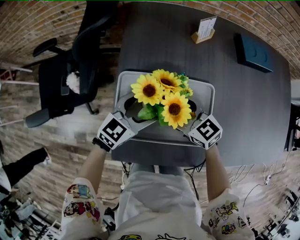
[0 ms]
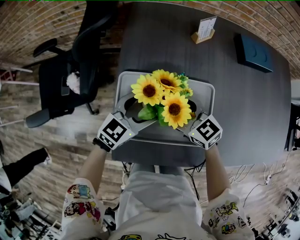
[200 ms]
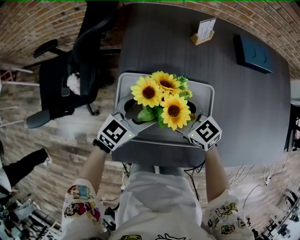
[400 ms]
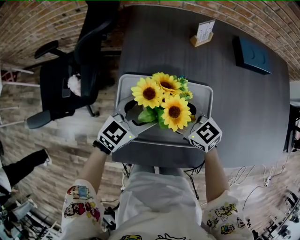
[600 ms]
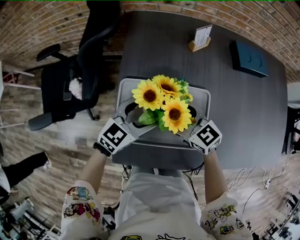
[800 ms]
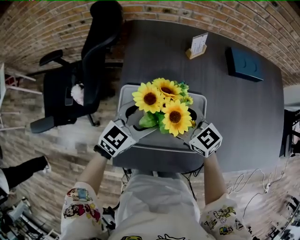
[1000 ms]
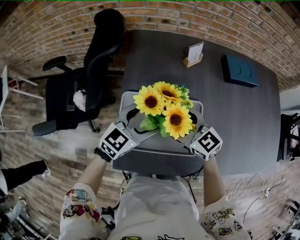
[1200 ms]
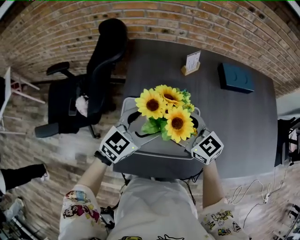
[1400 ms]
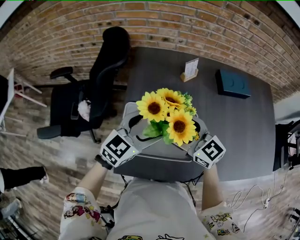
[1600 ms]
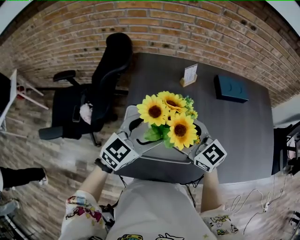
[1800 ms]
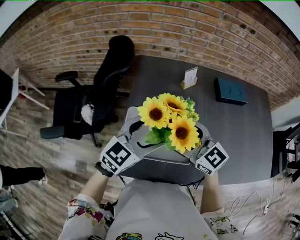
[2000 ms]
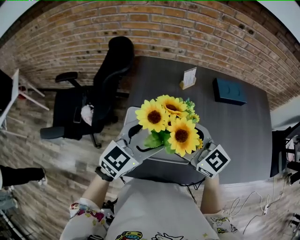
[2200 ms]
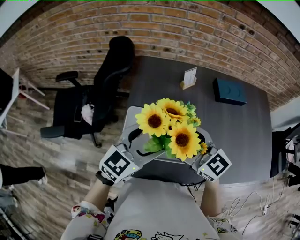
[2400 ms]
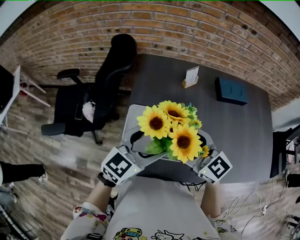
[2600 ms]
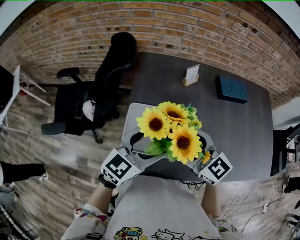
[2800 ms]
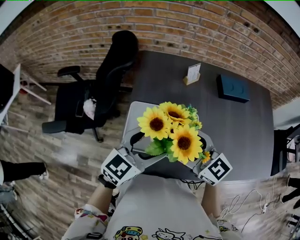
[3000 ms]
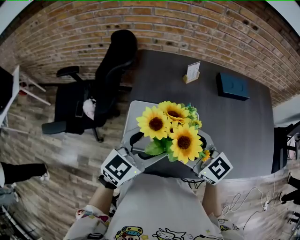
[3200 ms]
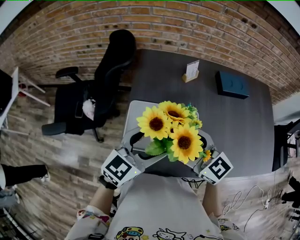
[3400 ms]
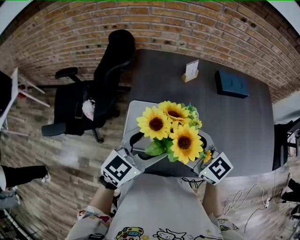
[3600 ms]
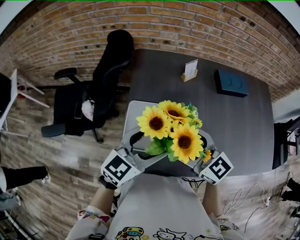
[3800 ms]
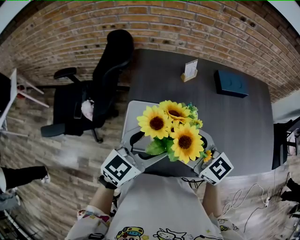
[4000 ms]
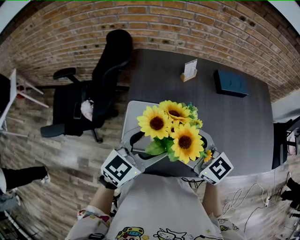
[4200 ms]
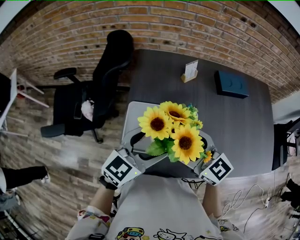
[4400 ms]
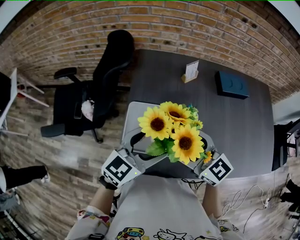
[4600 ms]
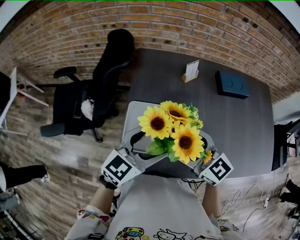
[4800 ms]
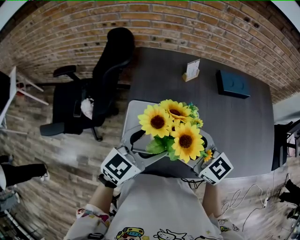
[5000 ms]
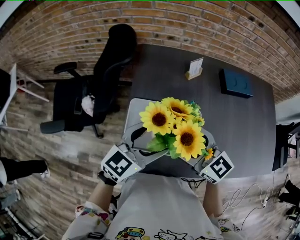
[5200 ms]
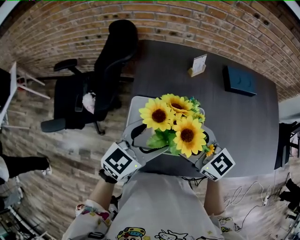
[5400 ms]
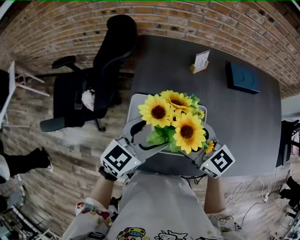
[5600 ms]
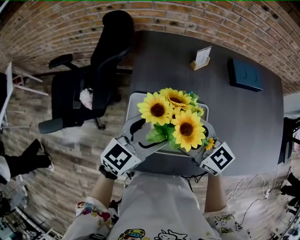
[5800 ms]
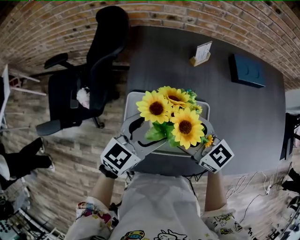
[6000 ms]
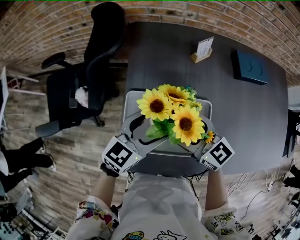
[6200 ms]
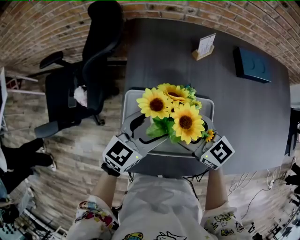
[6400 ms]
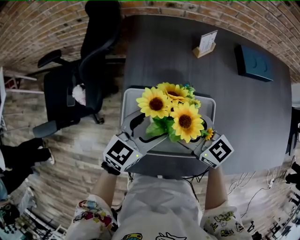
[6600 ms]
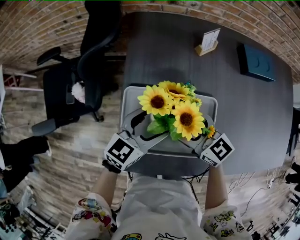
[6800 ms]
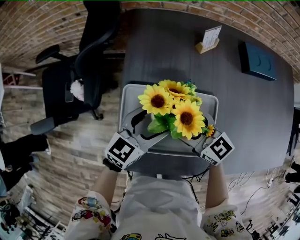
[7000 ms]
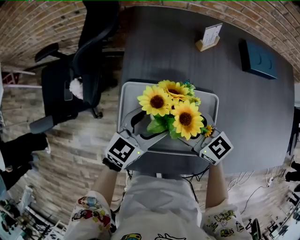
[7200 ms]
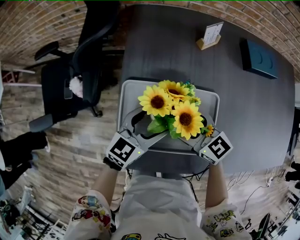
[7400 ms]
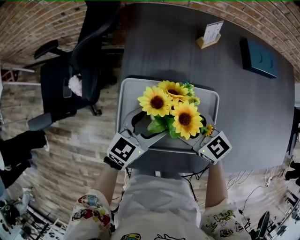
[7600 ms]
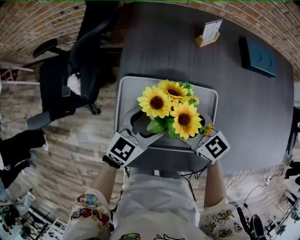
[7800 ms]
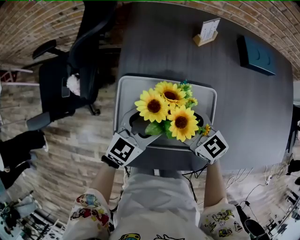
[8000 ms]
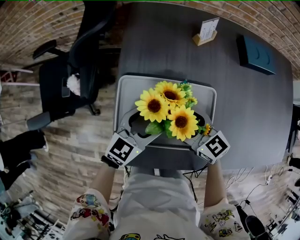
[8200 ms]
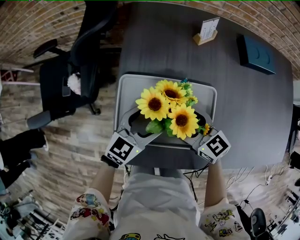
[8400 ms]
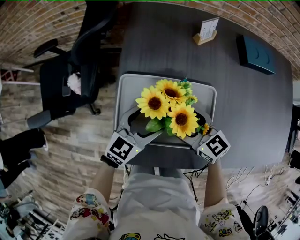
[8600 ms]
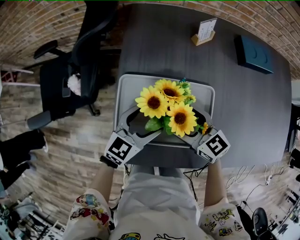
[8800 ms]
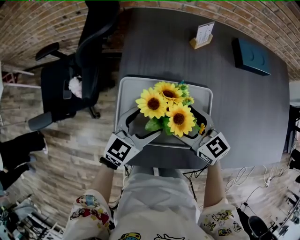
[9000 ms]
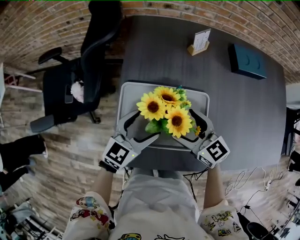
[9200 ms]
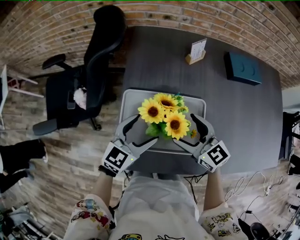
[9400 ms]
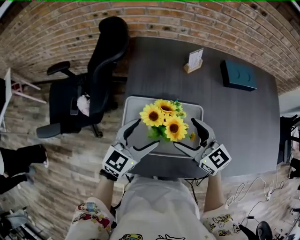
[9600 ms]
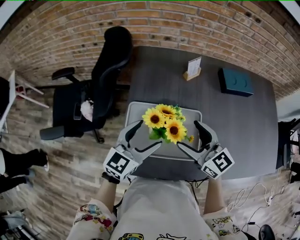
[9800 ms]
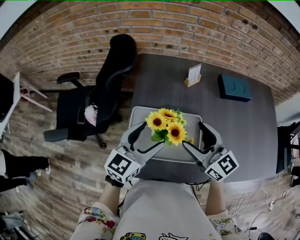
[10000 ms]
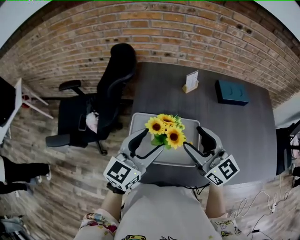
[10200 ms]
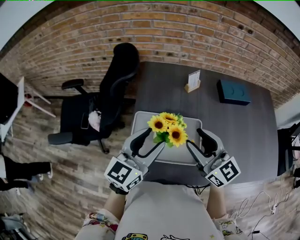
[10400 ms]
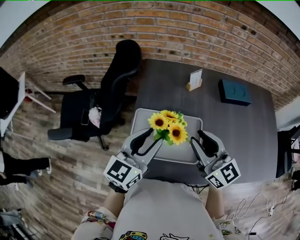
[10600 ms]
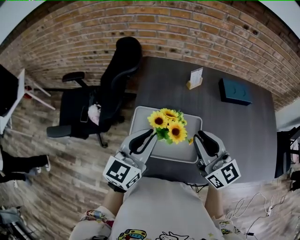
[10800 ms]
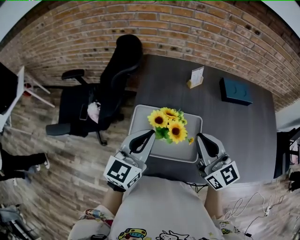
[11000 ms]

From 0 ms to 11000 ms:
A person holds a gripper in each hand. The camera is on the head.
From 0 ms to 1600 ms: The grippers both shift upward by some 15 cm.
From 1600 ms to 3200 ms: Both grippers travel together backward and upward, roughly 10 cm.
From 3200 ms to 4800 ms: Neither gripper changes place.
From 4800 ms to 6200 ms: Both grippers move downward and forward, some 10 cm.
From 6200 ms to 7800 ms: Both grippers move downward, roughly 10 cm.
From 7800 ms to 9400 ms: The left gripper shifts by some 5 cm; the right gripper goes approximately 5 cm upward.
From 9400 ms to 11000 ms: The two grippers go some 15 cm upward. The right gripper turns by approximately 20 degrees, and closes its fingers. The left gripper closes.

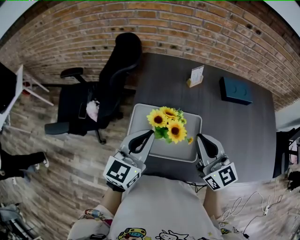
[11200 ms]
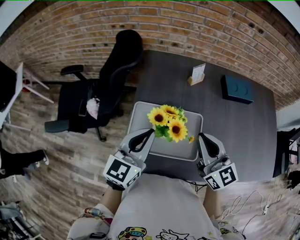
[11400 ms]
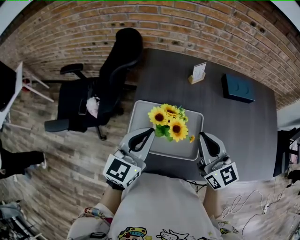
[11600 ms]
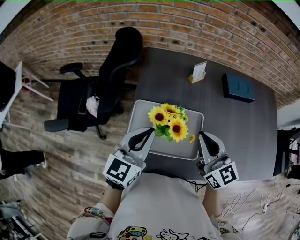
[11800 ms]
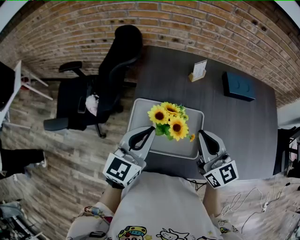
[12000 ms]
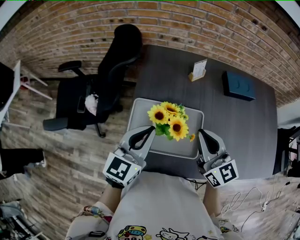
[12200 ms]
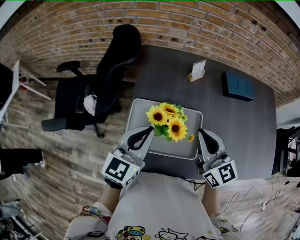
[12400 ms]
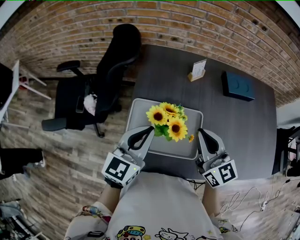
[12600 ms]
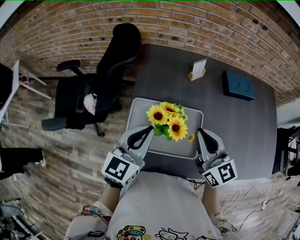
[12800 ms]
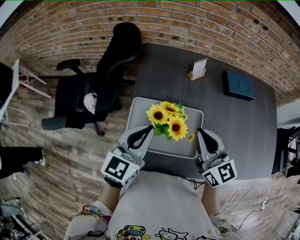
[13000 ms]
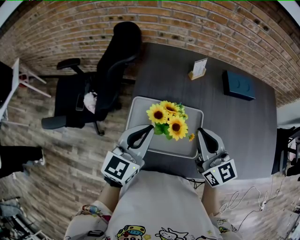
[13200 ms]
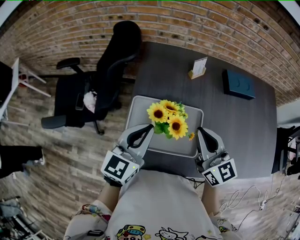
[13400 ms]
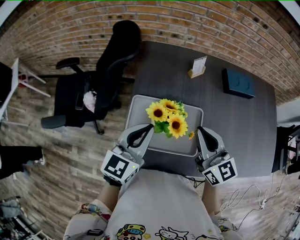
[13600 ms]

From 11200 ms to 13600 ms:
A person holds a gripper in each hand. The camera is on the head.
From 11200 ms to 12400 ms: The grippers make only small movements.
From 12400 ms to 13600 ms: Both grippers stay put.

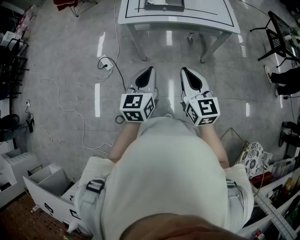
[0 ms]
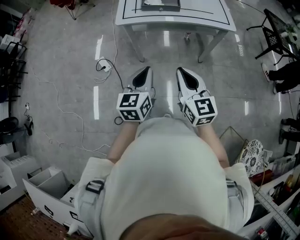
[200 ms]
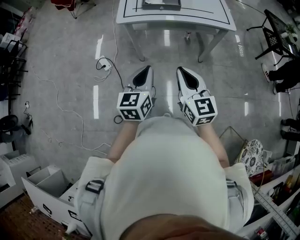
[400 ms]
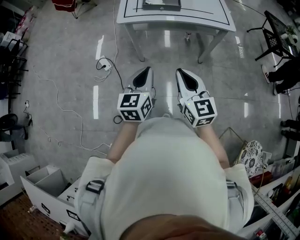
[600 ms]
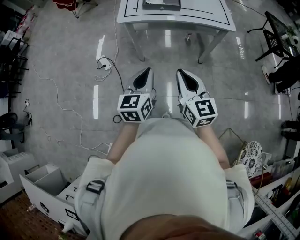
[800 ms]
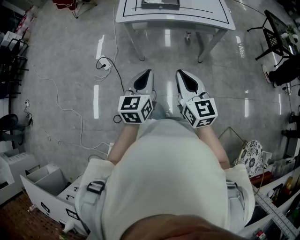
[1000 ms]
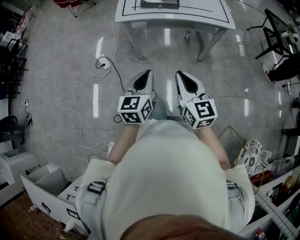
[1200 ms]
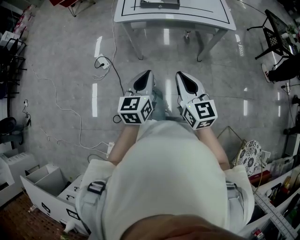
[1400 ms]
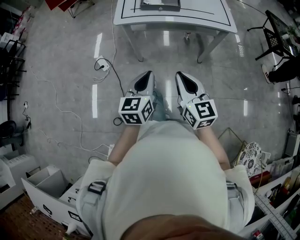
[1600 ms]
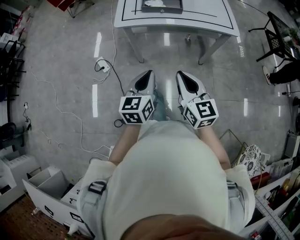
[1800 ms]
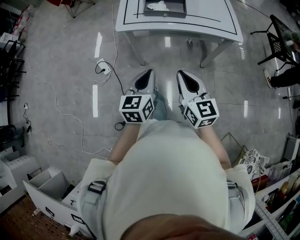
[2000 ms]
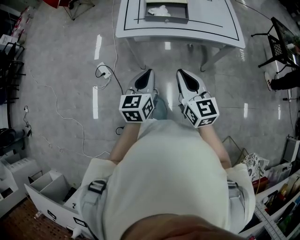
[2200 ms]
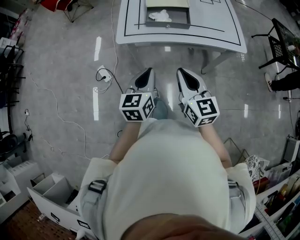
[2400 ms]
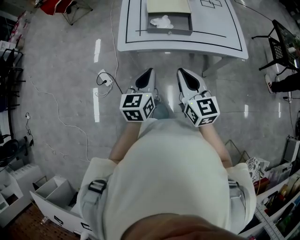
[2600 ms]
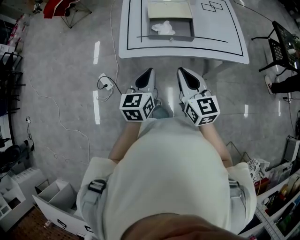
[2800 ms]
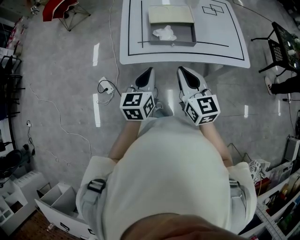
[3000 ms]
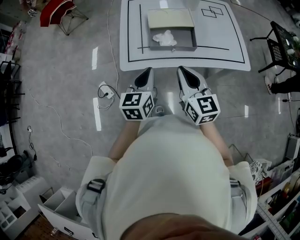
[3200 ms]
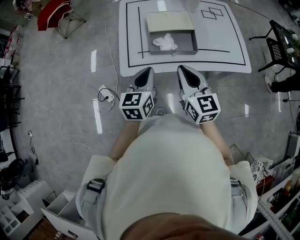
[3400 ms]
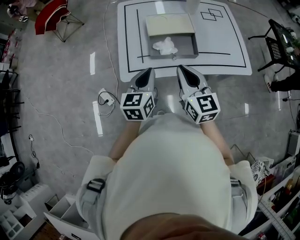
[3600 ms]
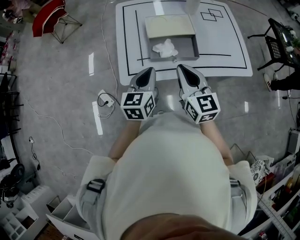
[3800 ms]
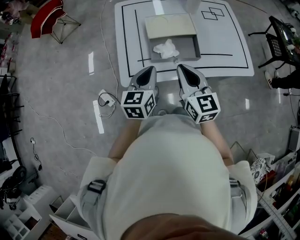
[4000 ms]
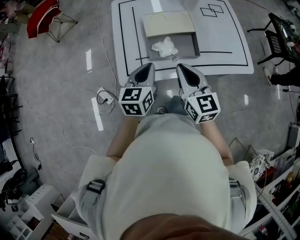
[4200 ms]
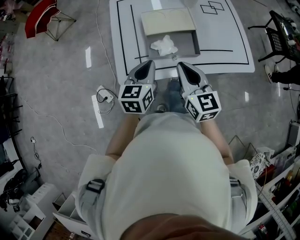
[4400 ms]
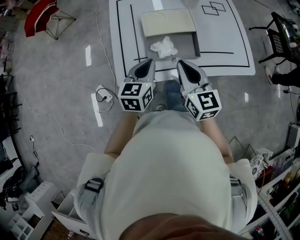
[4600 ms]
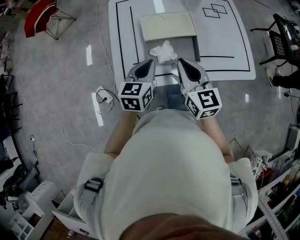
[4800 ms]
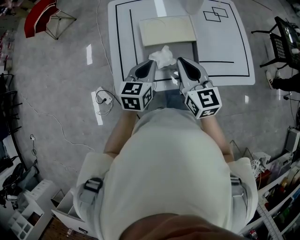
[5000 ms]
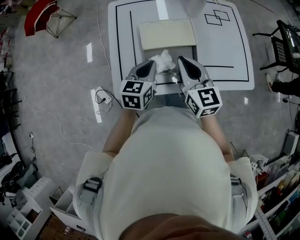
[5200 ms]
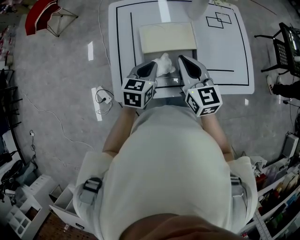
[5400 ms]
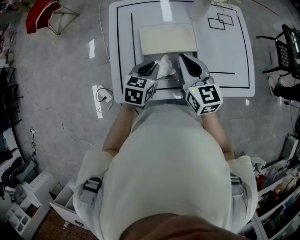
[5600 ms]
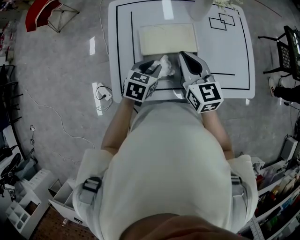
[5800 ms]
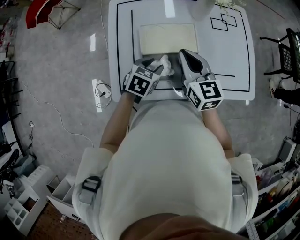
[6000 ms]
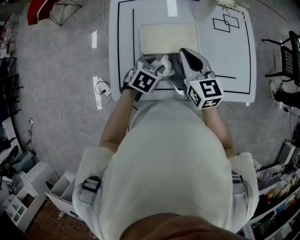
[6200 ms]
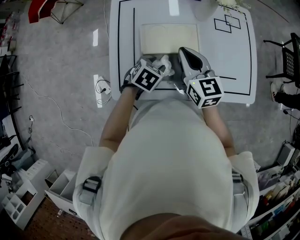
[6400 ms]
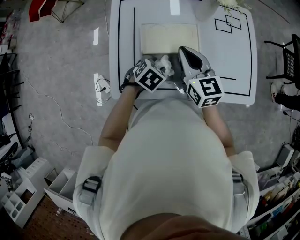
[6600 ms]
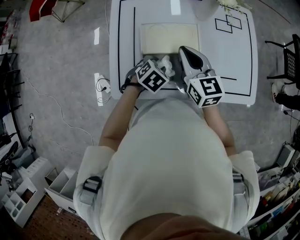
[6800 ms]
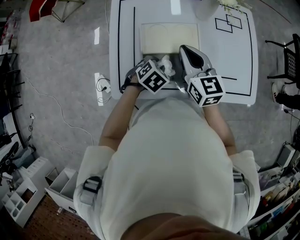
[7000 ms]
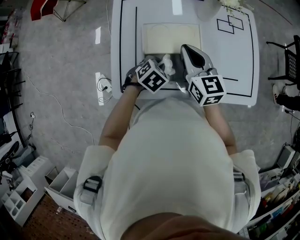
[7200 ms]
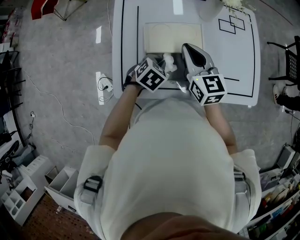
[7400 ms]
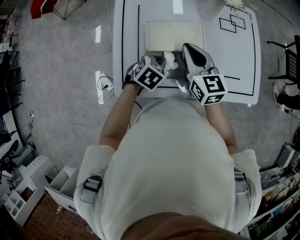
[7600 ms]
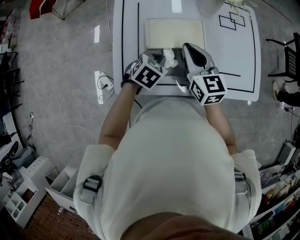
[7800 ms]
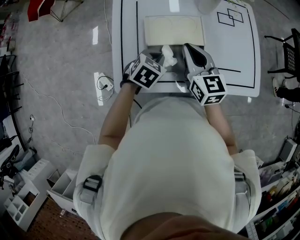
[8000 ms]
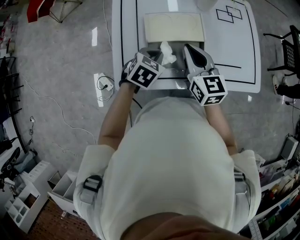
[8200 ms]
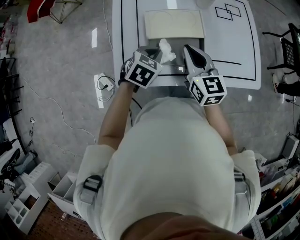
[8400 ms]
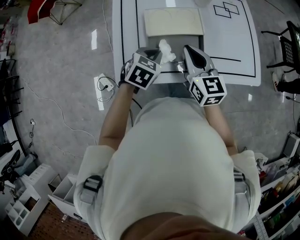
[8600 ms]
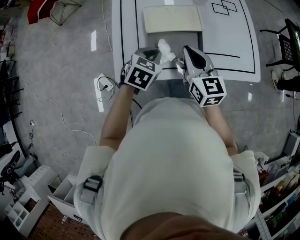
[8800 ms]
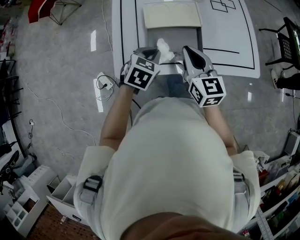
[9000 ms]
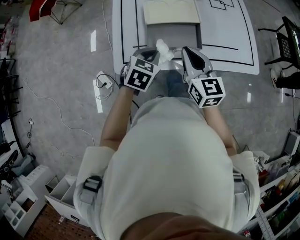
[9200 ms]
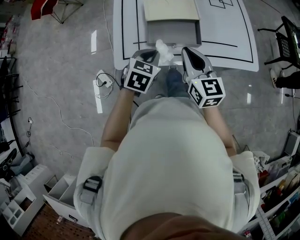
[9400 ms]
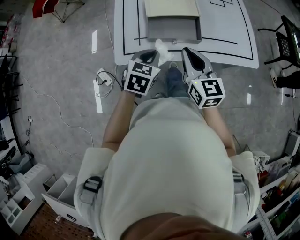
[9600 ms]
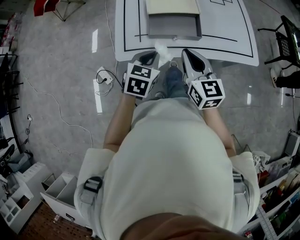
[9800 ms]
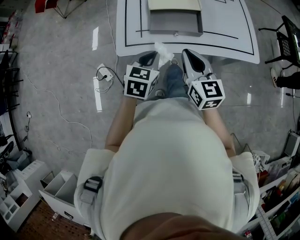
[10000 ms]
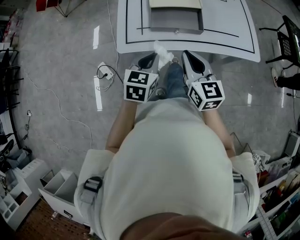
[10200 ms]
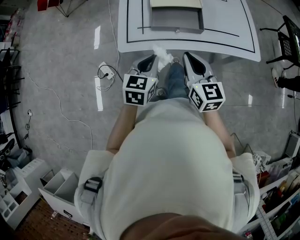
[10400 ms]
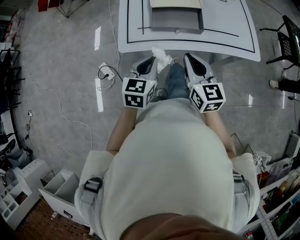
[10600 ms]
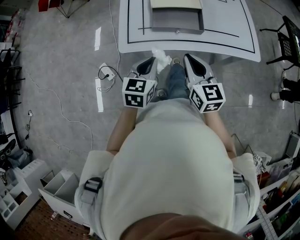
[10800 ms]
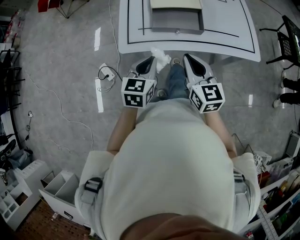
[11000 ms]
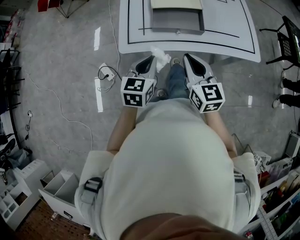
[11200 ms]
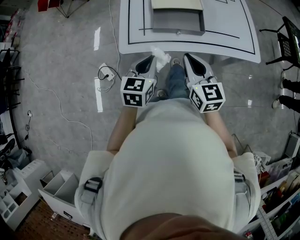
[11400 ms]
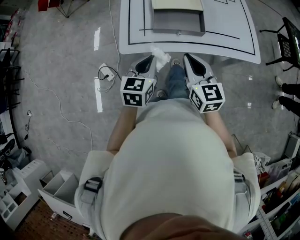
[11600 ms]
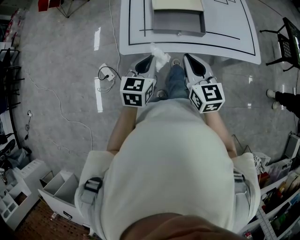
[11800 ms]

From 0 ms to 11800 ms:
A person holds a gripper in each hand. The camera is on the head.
From 0 ms to 1400 ms: The grippers stay close to where they were, moving slightly.
From 1400 ms to 3000 ms: The two grippers go approximately 30 cm forward.
From 3000 ms to 4400 ms: Both grippers move forward, some 15 cm.
From 4400 ms to 6000 ms: The left gripper is displaced forward, downward and to the right by about 15 cm, rotates roughly 30 degrees, and opens. Meanwhile the right gripper goes about 20 cm forward.
From 6000 ms to 7400 ms: The left gripper closes up.
From 7400 ms to 8800 ms: The right gripper shifts some 10 cm backward. Meanwhile the left gripper moves upward and backward, roughly 10 cm.
From 8800 ms to 10400 ms: The grippers both shift backward by about 20 cm. The left gripper turns by about 20 degrees.
From 10400 ms to 11800 ms: The grippers make only small movements.
